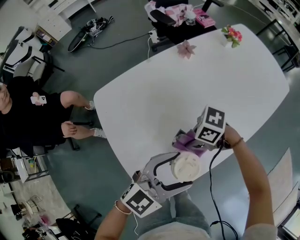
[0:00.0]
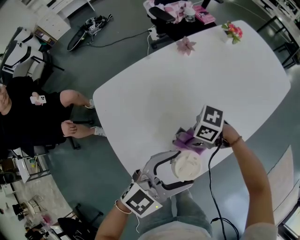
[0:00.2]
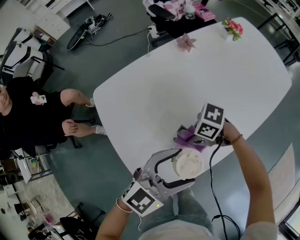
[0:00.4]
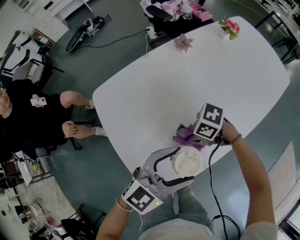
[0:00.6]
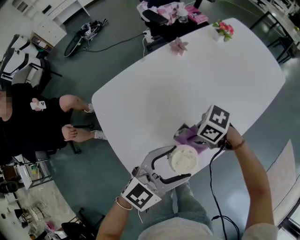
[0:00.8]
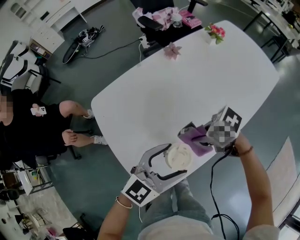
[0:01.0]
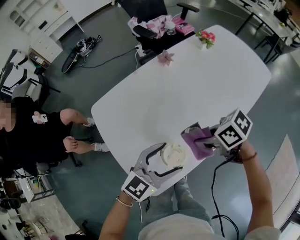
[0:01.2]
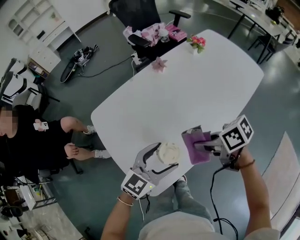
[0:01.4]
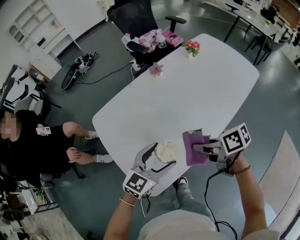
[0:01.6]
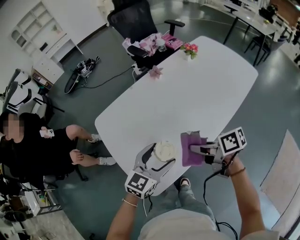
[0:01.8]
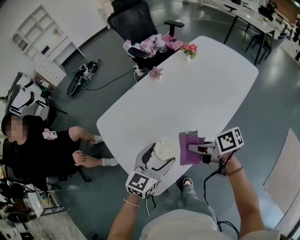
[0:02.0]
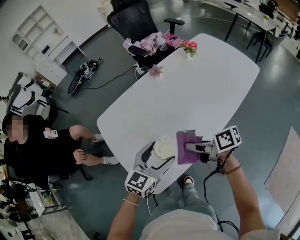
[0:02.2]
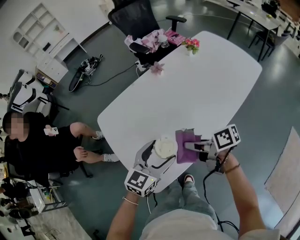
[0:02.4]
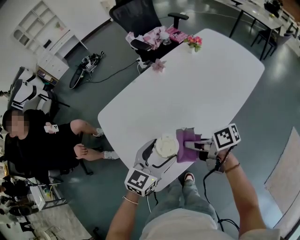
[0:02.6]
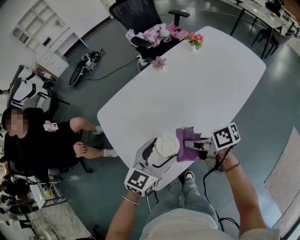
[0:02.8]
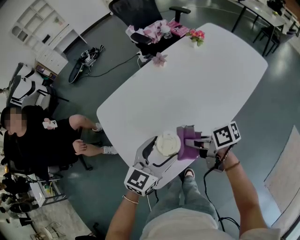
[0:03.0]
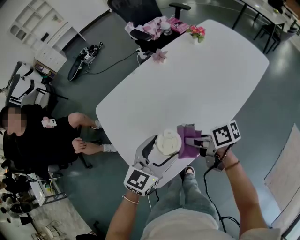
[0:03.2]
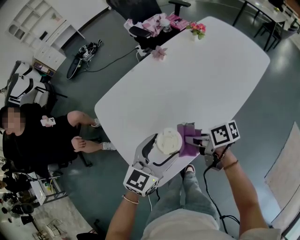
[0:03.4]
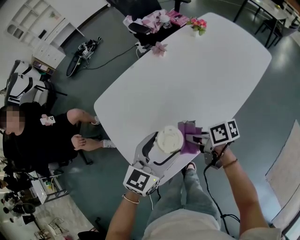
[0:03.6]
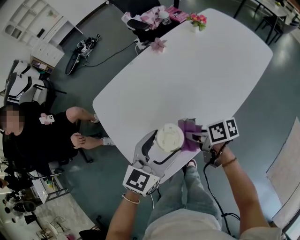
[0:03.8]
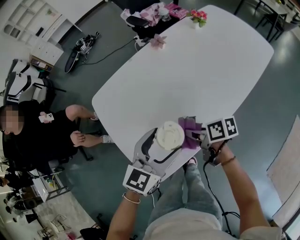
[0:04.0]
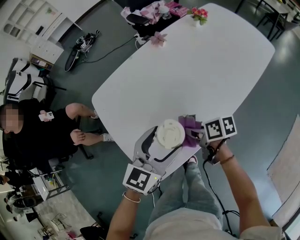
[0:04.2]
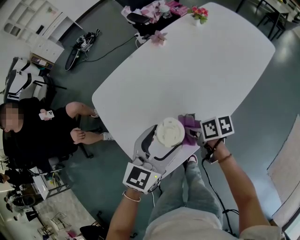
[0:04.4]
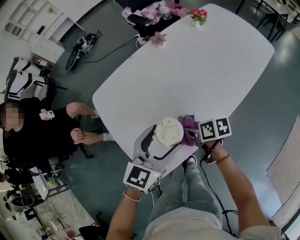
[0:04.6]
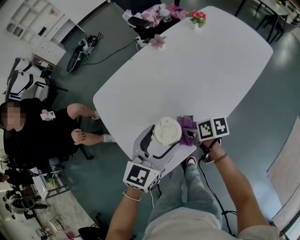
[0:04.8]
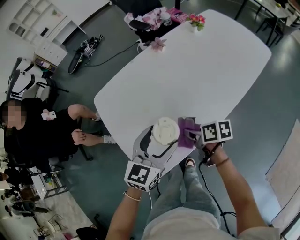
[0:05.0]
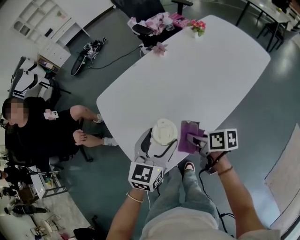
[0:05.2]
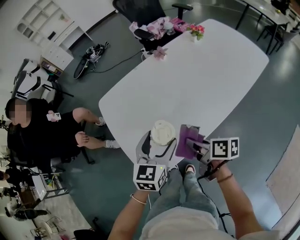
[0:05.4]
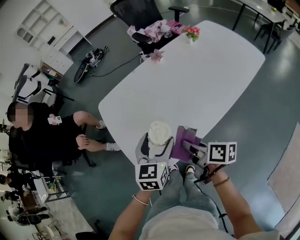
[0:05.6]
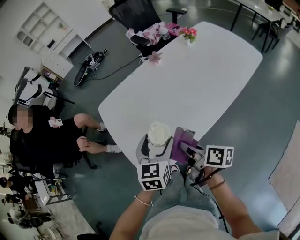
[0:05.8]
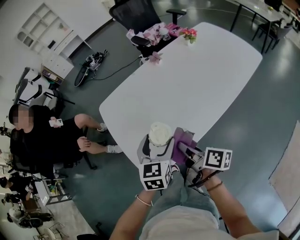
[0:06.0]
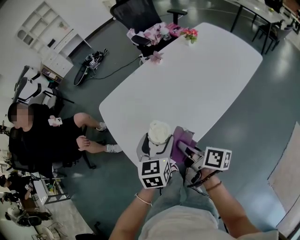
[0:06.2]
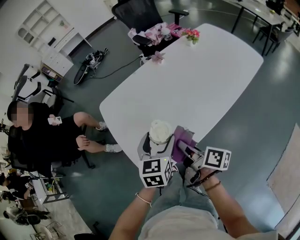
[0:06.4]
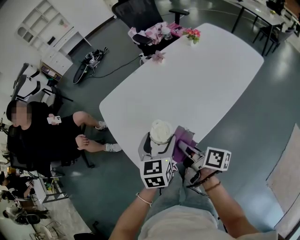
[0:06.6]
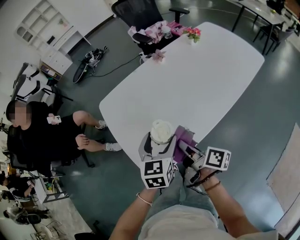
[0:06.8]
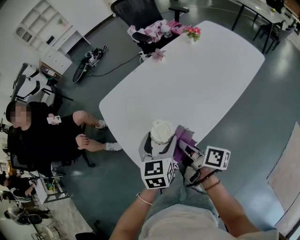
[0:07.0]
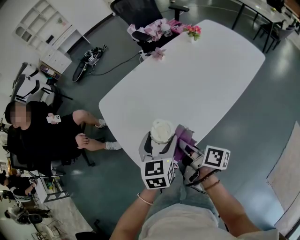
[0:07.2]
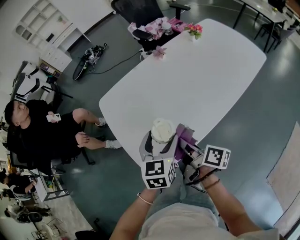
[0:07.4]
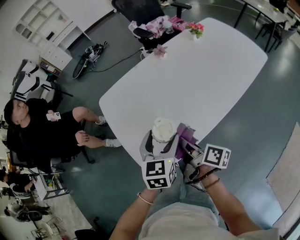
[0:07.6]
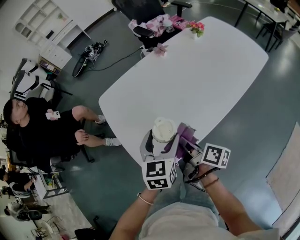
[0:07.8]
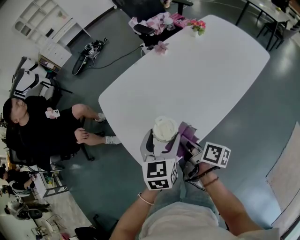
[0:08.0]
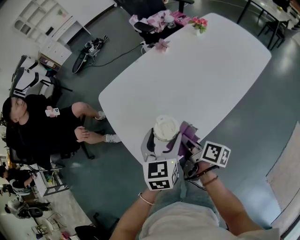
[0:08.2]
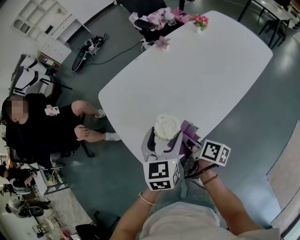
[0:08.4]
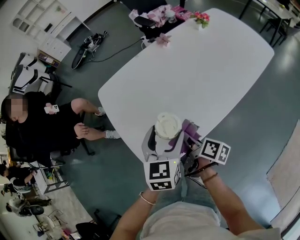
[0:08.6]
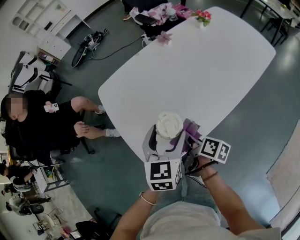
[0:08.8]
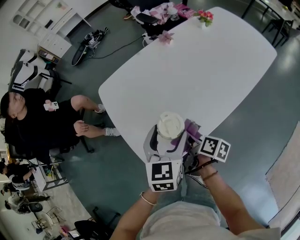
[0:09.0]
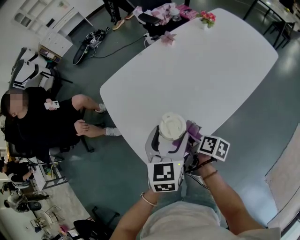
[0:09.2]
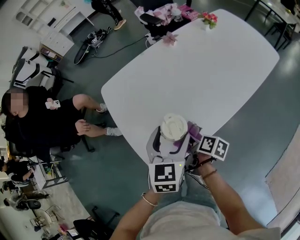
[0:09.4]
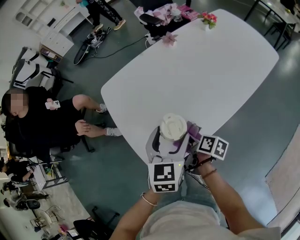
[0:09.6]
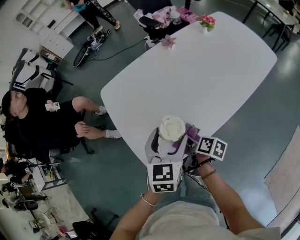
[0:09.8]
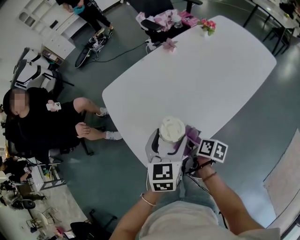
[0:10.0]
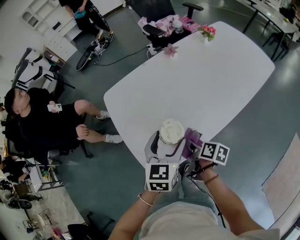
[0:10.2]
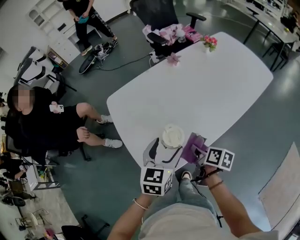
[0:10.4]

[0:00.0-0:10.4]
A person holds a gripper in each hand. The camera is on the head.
0:00.0 to 0:01.4: The right gripper shifts some 10 cm upward, and changes its angle by roughly 50 degrees.
0:01.4 to 0:03.0: The right gripper turns by roughly 30 degrees.
0:03.0 to 0:04.4: The right gripper heads downward, covering roughly 10 cm, and rotates about 20 degrees.
0:04.4 to 0:06.0: The left gripper swivels about 30 degrees; the right gripper travels upward and backward by roughly 15 cm, and turns by about 40 degrees.
0:06.0 to 0:07.4: The grippers make only small movements.
0:07.4 to 0:09.0: The right gripper travels downward by some 10 cm.
0:09.0 to 0:10.4: There are only small adjustments of the grippers.

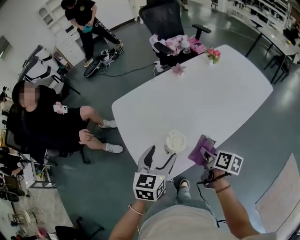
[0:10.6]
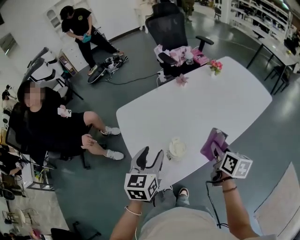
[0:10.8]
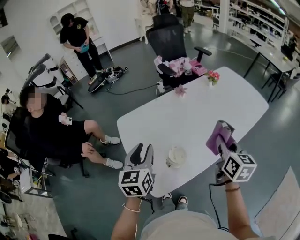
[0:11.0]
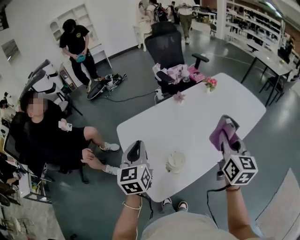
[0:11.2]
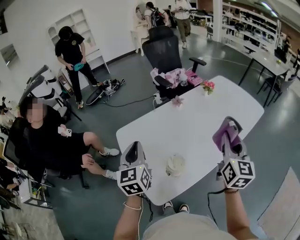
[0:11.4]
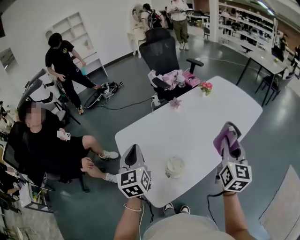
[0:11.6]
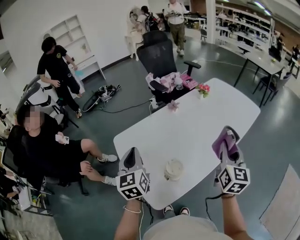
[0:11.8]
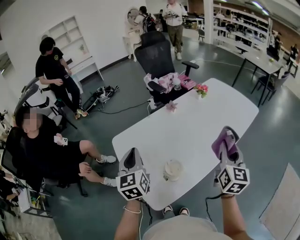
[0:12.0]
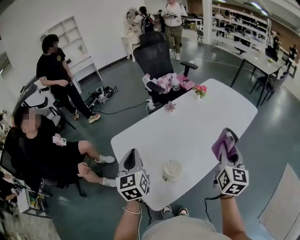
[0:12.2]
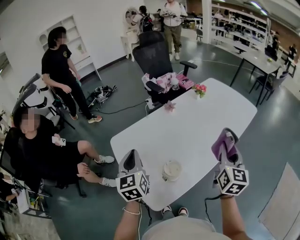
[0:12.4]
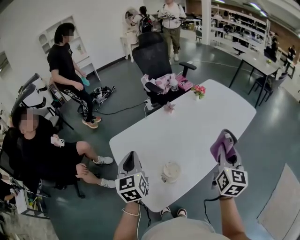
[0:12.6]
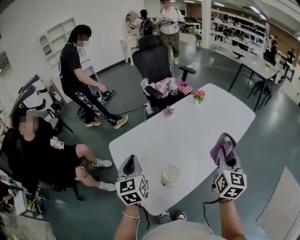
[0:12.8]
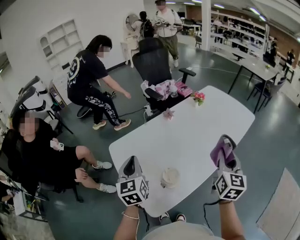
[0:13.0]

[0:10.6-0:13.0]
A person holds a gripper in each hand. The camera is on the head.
0:10.6 to 0:11.8: The right gripper goes approximately 20 cm upward, and tilts its fingers roughly 30 degrees upward. Meanwhile the left gripper heads to the left, upward and forward, covering roughly 20 cm, swivels some 30 degrees, and closes.
0:11.8 to 0:13.0: The grippers move only a little.

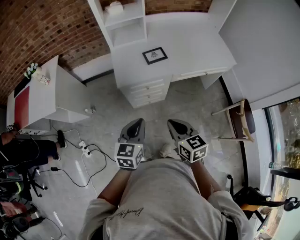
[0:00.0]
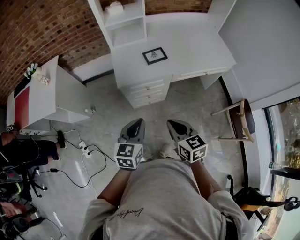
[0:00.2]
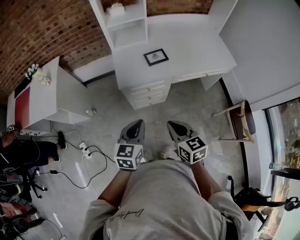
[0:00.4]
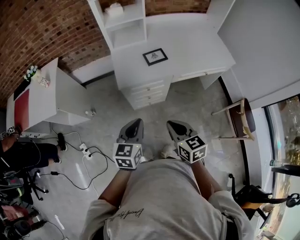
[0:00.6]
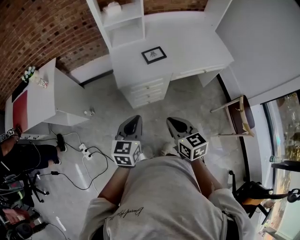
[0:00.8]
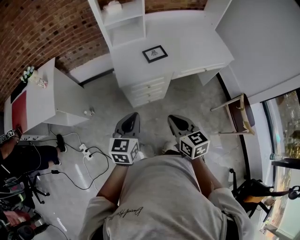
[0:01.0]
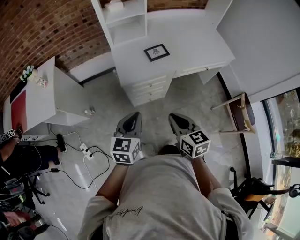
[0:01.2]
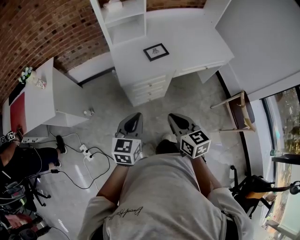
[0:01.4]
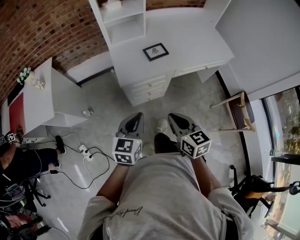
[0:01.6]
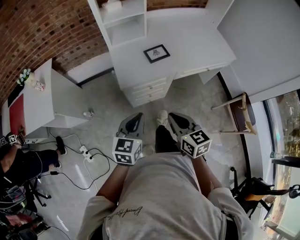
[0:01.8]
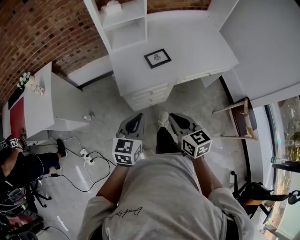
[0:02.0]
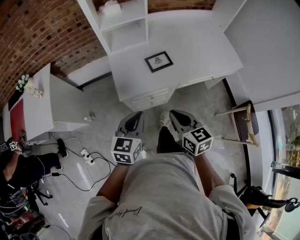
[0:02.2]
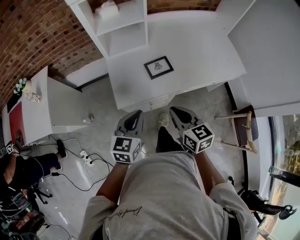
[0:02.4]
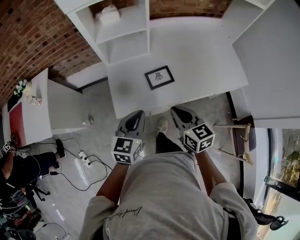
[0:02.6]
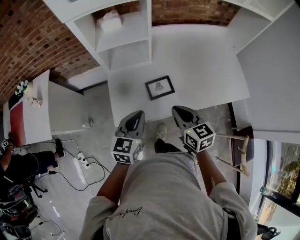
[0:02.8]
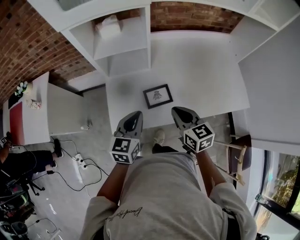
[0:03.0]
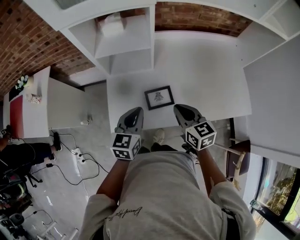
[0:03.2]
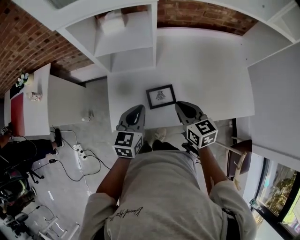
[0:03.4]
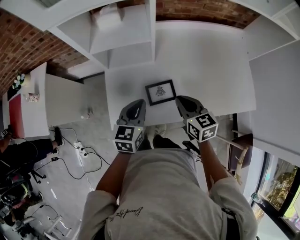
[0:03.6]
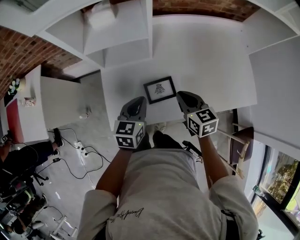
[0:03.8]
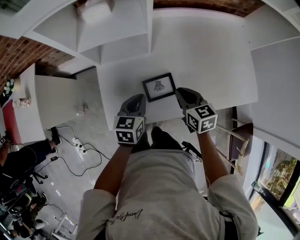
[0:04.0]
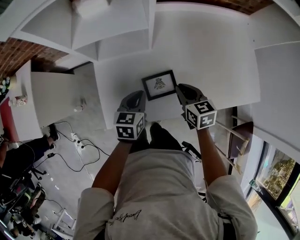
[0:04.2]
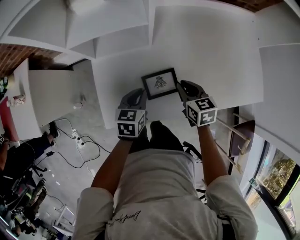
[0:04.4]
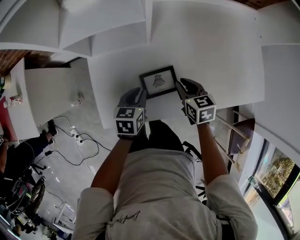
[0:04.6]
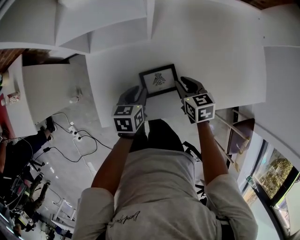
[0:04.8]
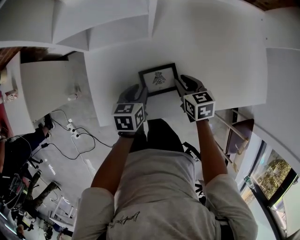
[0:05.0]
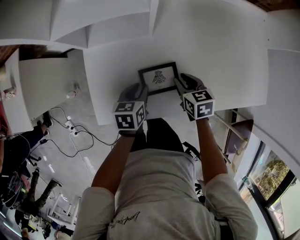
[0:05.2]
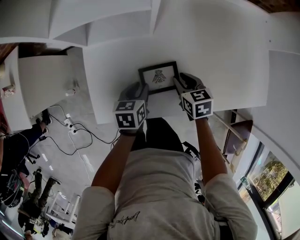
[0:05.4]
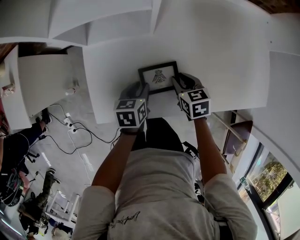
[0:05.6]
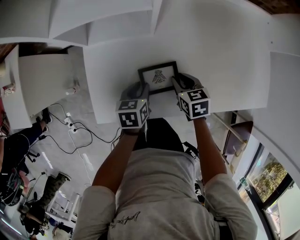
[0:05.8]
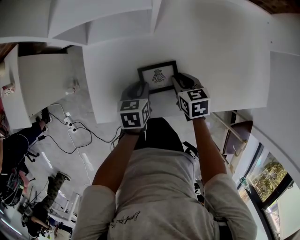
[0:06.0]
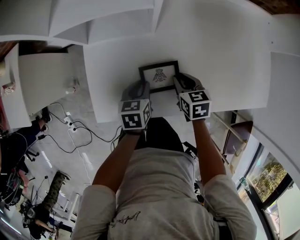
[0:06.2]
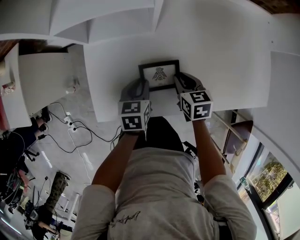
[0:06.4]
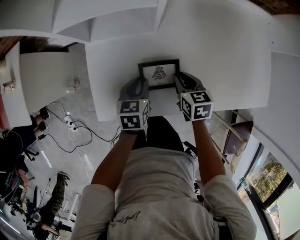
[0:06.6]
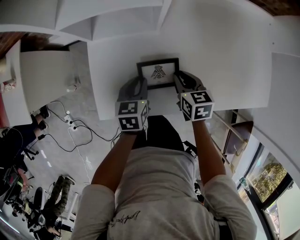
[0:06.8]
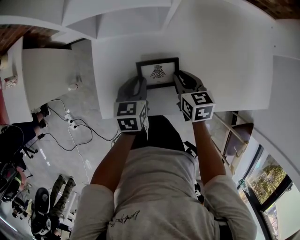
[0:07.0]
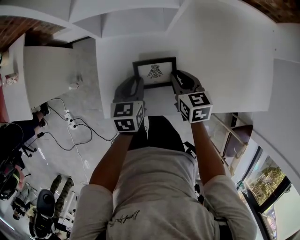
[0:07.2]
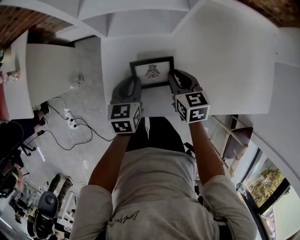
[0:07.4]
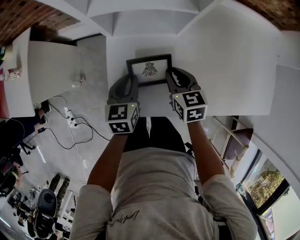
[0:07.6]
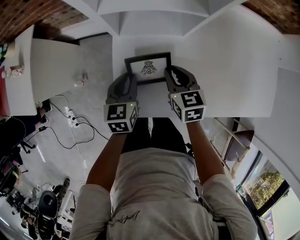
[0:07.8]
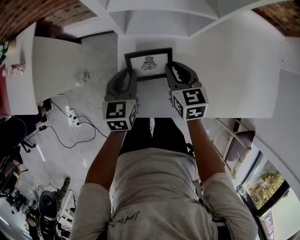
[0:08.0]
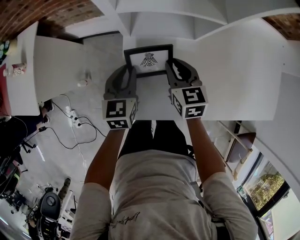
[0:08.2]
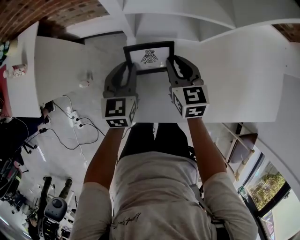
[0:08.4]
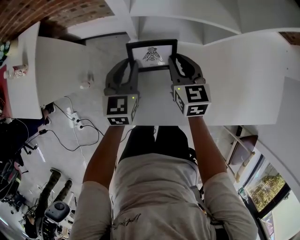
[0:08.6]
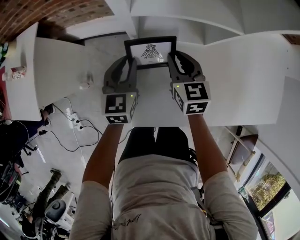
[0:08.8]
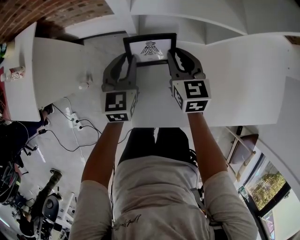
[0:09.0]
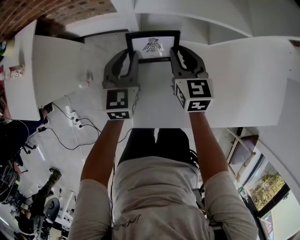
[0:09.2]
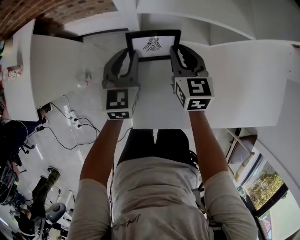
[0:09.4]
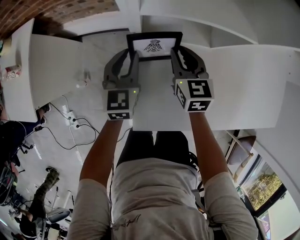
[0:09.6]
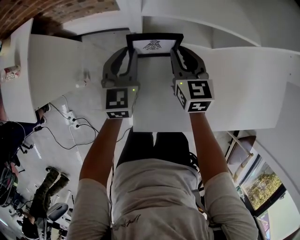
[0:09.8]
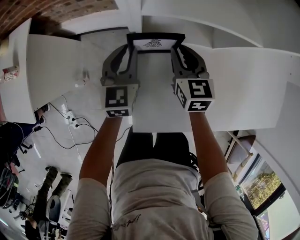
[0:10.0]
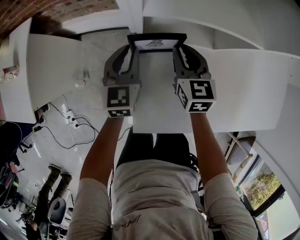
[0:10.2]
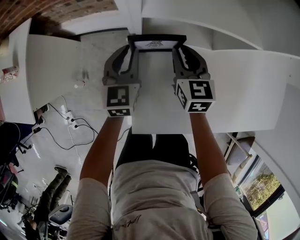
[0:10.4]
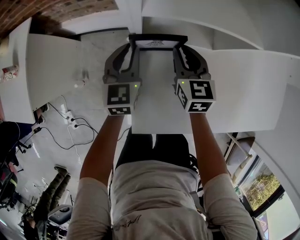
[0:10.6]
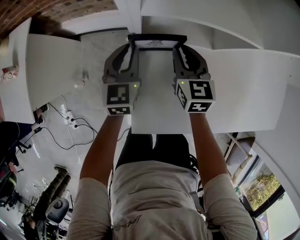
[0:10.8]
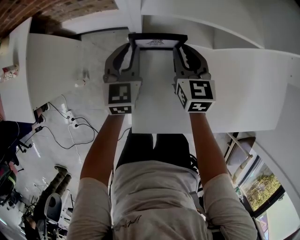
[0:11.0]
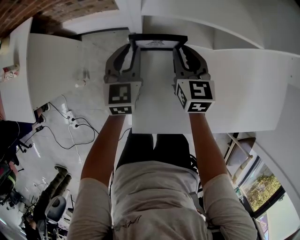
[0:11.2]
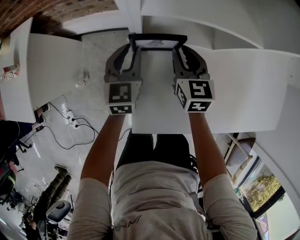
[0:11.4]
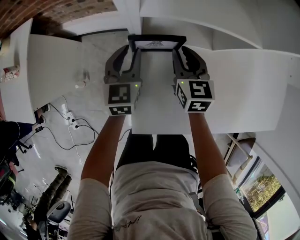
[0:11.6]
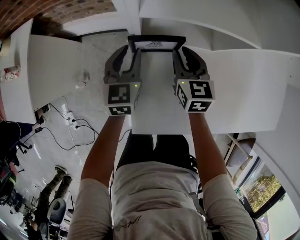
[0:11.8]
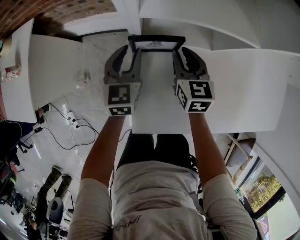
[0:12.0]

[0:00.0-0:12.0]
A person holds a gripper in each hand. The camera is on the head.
0:00.0 to 0:01.6: The two grippers go roughly 5 cm to the left.
0:01.6 to 0:03.0: Both grippers move forward, some 35 cm.
0:03.0 to 0:04.4: Both grippers travel together downward and forward, some 20 cm. The left gripper swivels some 20 degrees.
0:04.4 to 0:06.0: The two grippers go some 5 cm downward.
0:06.0 to 0:07.6: Both grippers travel together to the left and upward, about 15 cm.
0:07.6 to 0:09.0: Both grippers travel together forward and to the left, some 15 cm.
0:09.0 to 0:10.4: The grippers move only a little.
0:10.4 to 0:12.0: The two grippers keep their place.
